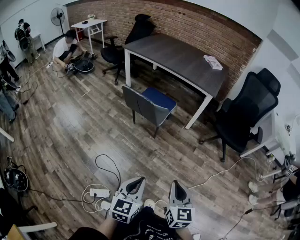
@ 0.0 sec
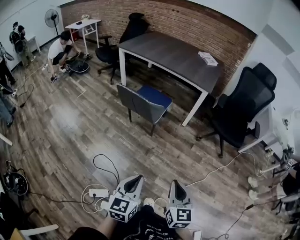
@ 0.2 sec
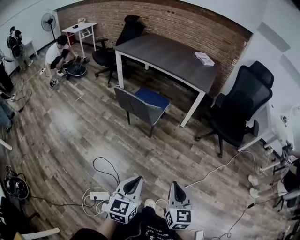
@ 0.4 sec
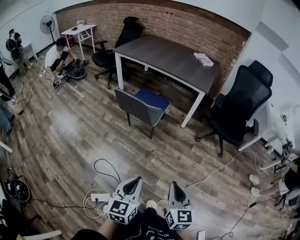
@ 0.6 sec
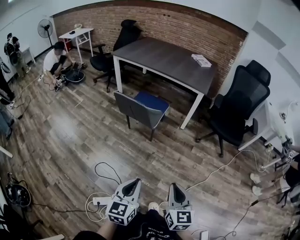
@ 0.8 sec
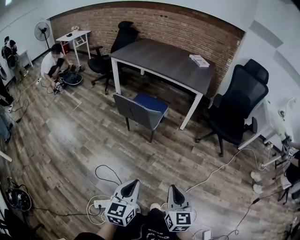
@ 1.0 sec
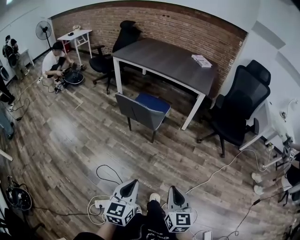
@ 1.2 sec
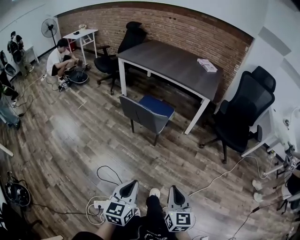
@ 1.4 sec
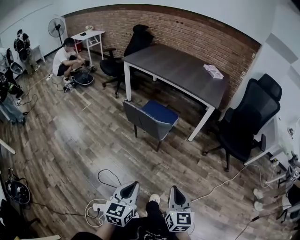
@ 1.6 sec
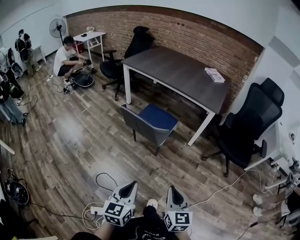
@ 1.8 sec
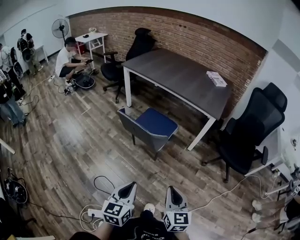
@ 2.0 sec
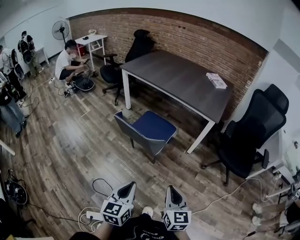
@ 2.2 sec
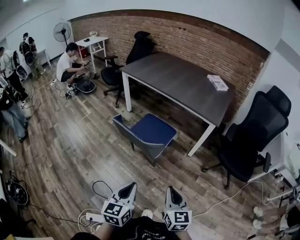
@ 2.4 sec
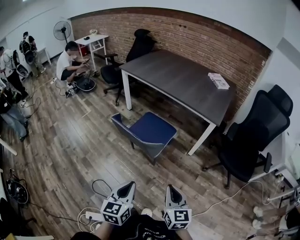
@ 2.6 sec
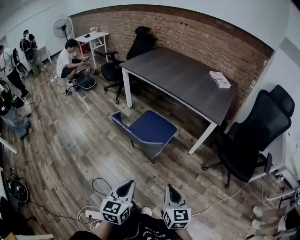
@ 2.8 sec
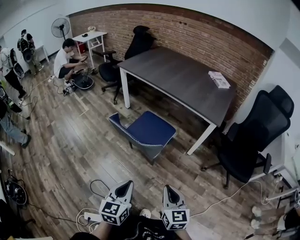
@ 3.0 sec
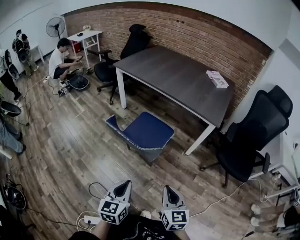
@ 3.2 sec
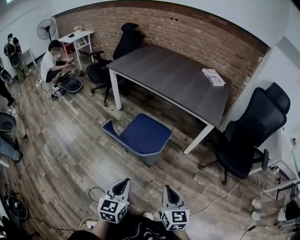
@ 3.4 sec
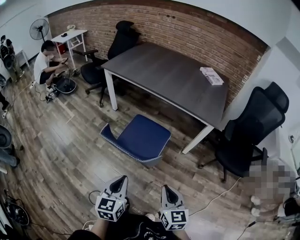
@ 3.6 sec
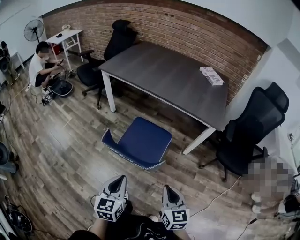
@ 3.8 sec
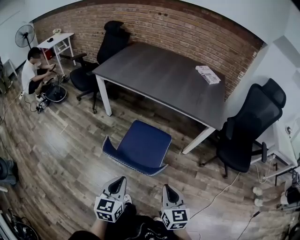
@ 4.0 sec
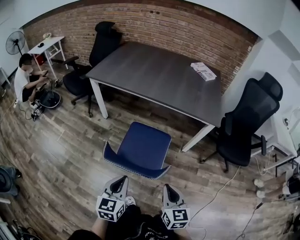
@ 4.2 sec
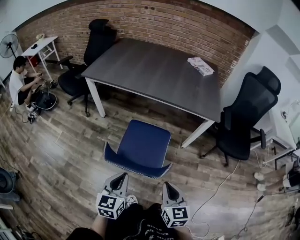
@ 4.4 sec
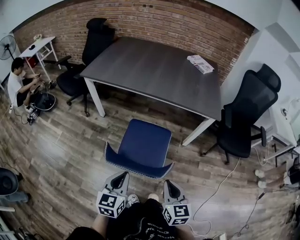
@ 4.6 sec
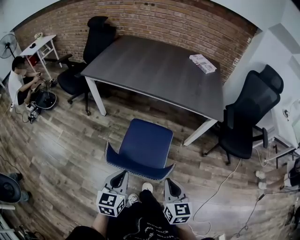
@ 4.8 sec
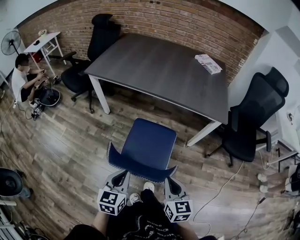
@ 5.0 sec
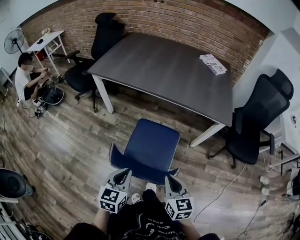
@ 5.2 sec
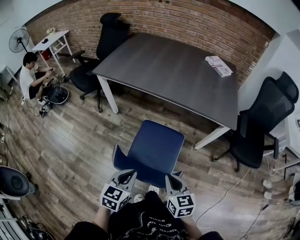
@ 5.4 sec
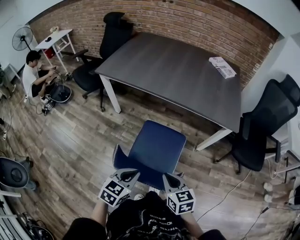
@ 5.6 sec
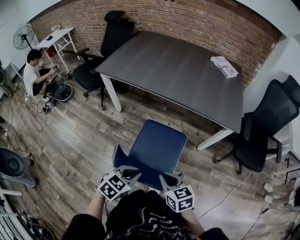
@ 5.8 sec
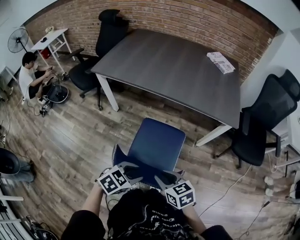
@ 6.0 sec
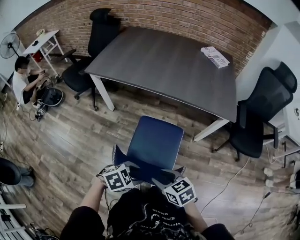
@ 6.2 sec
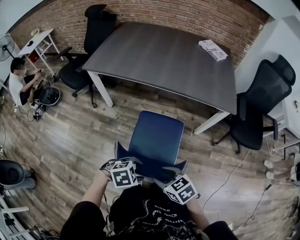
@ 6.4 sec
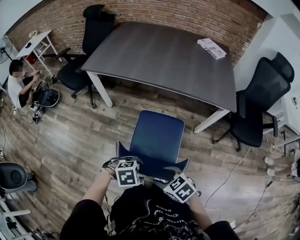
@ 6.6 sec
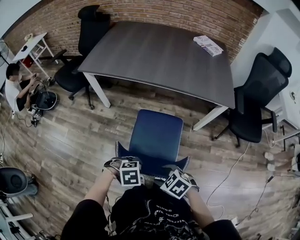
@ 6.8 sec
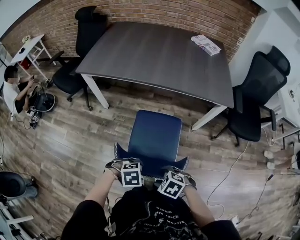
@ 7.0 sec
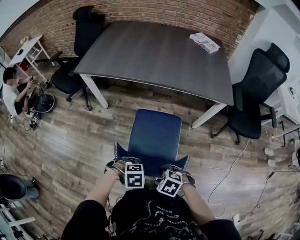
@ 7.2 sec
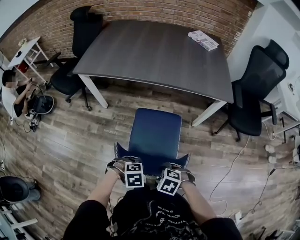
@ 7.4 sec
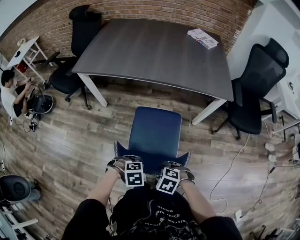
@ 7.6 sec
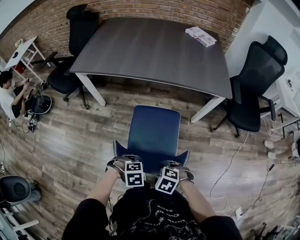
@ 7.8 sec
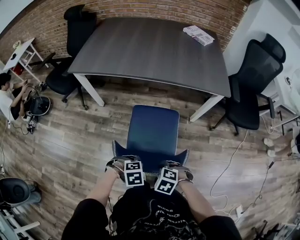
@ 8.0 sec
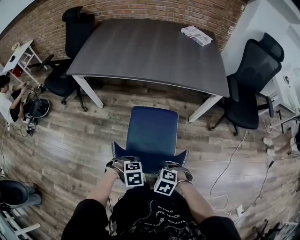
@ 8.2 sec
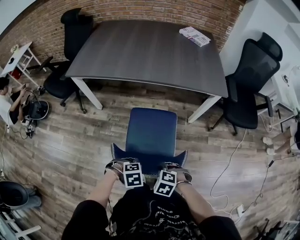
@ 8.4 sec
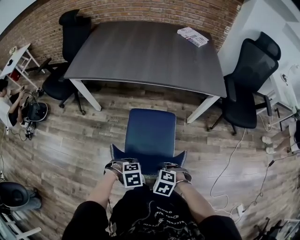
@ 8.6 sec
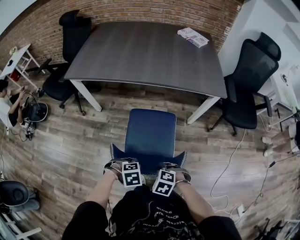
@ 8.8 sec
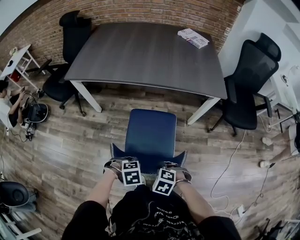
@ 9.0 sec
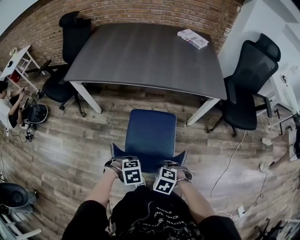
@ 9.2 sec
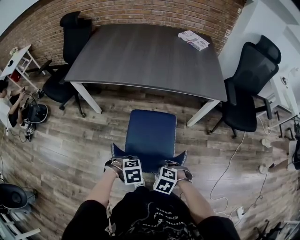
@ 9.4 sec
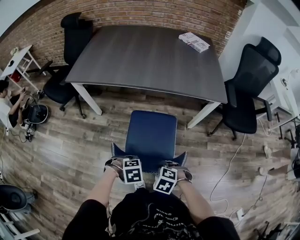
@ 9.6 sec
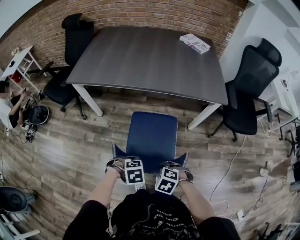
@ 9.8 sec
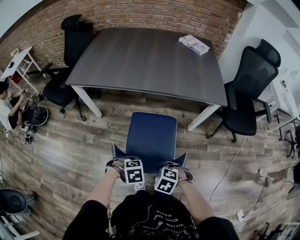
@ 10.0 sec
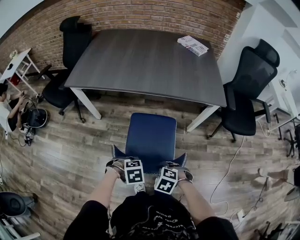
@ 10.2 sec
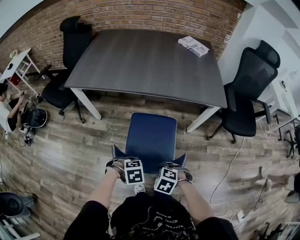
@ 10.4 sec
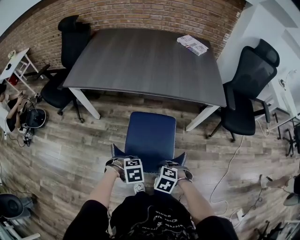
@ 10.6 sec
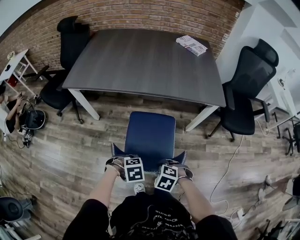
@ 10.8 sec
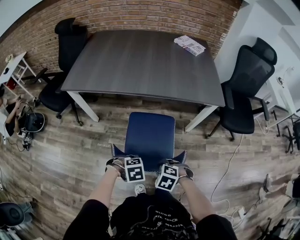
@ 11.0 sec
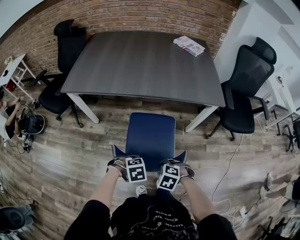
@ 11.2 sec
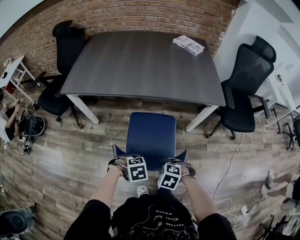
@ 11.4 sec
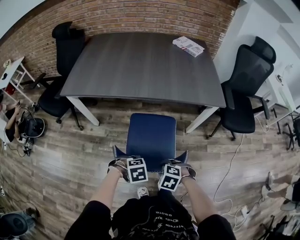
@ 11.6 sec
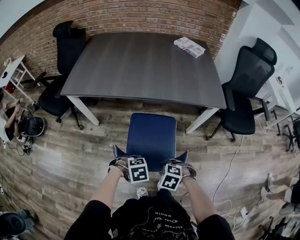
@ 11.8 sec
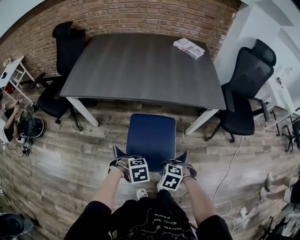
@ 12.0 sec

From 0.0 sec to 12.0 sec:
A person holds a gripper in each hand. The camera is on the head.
From 0.0 sec to 1.6 sec: The left gripper heads forward and to the left, covering about 10 cm, while the right gripper goes some 5 cm forward.
From 1.6 sec to 3.0 sec: Both grippers move forward, some 20 cm.
From 3.0 sec to 4.4 sec: The grippers both shift forward and to the left by approximately 25 cm. The left gripper turns by some 20 degrees. Meanwhile the right gripper turns by roughly 20 degrees.
From 4.4 sec to 6.0 sec: The left gripper heads forward and downward, covering some 10 cm, turns by some 50 degrees, and opens its fingers. Meanwhile the right gripper heads forward and to the left, covering approximately 15 cm, turns by about 30 degrees, and opens up.
From 6.0 sec to 7.6 sec: Both grippers travel together downward, some 10 cm. The right gripper tips its fingers downward by some 40 degrees, and opens its fingers. The left gripper turns by about 50 degrees.
From 7.6 sec to 9.0 sec: The right gripper closes its fingers.
From 9.0 sec to 10.4 sec: The grippers make only small movements.
From 10.4 sec to 12.0 sec: There are only small adjustments of the grippers.

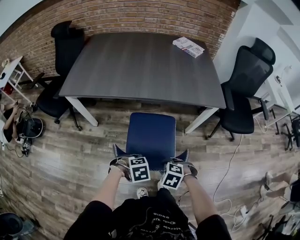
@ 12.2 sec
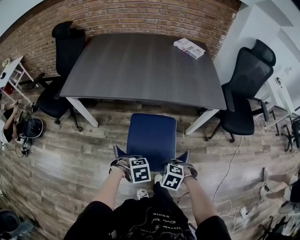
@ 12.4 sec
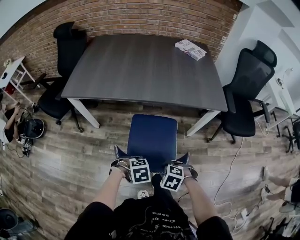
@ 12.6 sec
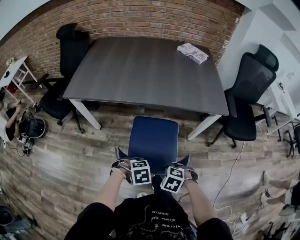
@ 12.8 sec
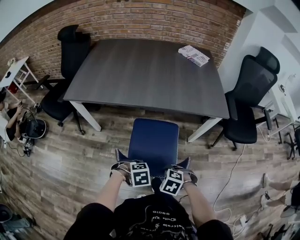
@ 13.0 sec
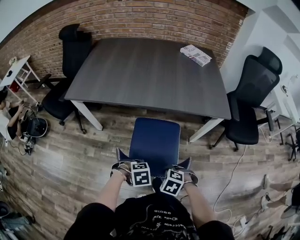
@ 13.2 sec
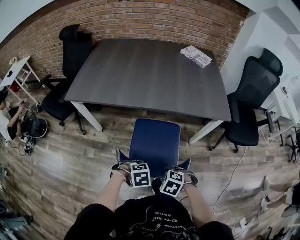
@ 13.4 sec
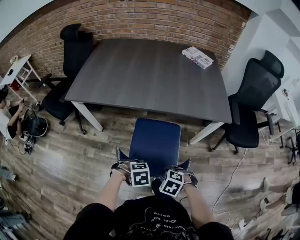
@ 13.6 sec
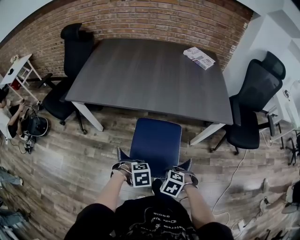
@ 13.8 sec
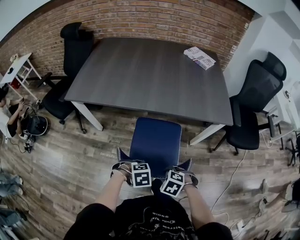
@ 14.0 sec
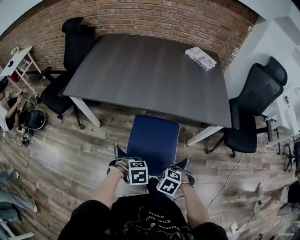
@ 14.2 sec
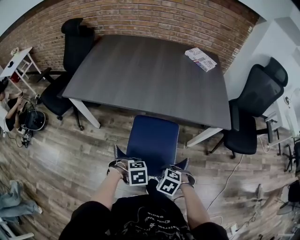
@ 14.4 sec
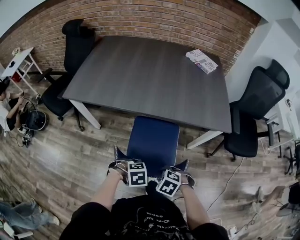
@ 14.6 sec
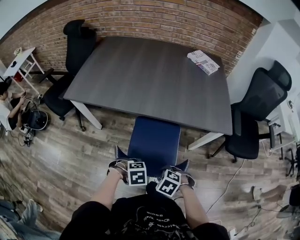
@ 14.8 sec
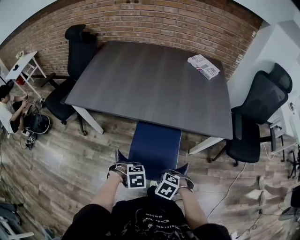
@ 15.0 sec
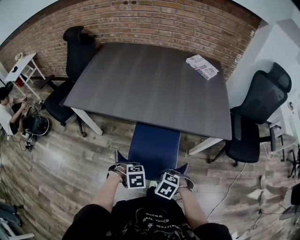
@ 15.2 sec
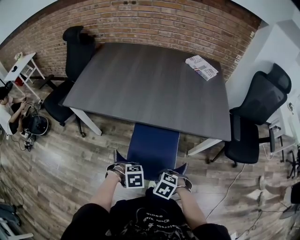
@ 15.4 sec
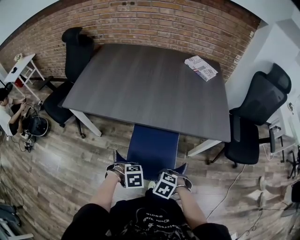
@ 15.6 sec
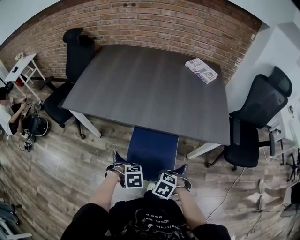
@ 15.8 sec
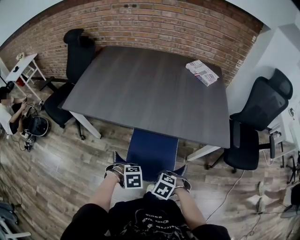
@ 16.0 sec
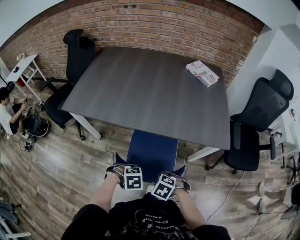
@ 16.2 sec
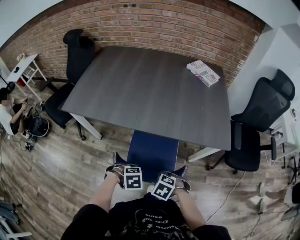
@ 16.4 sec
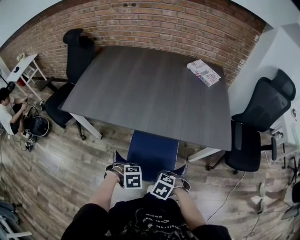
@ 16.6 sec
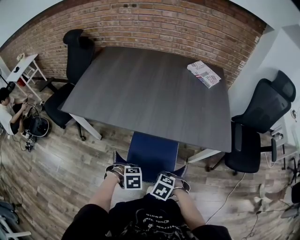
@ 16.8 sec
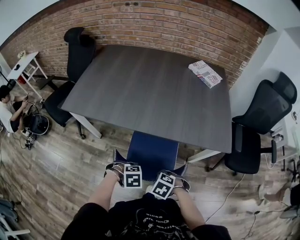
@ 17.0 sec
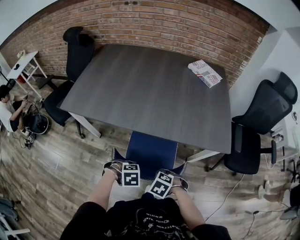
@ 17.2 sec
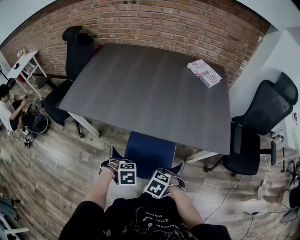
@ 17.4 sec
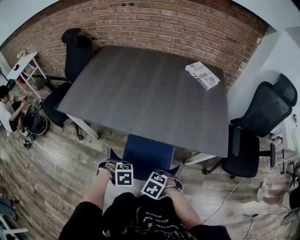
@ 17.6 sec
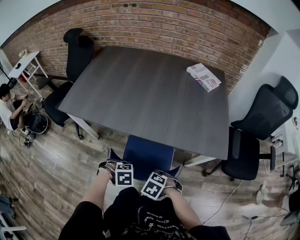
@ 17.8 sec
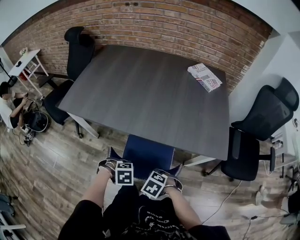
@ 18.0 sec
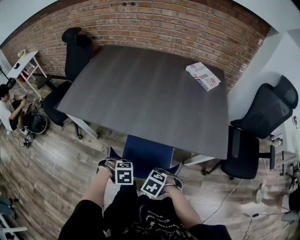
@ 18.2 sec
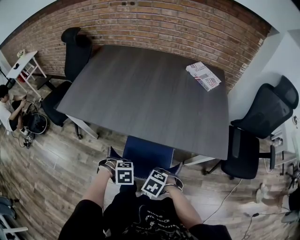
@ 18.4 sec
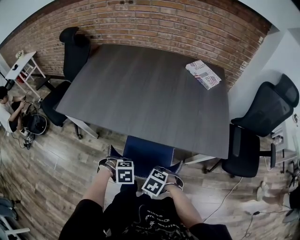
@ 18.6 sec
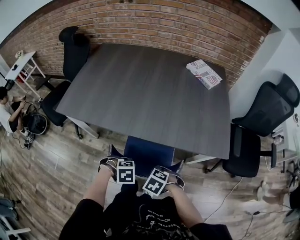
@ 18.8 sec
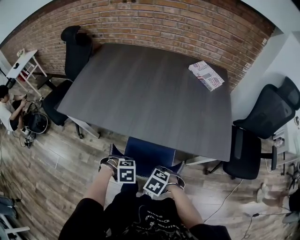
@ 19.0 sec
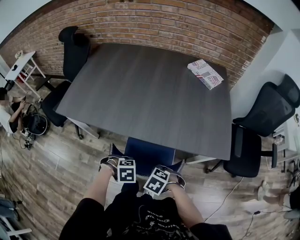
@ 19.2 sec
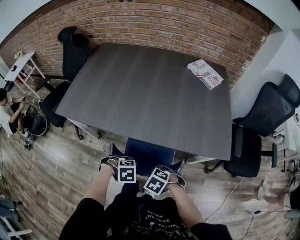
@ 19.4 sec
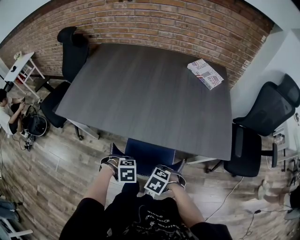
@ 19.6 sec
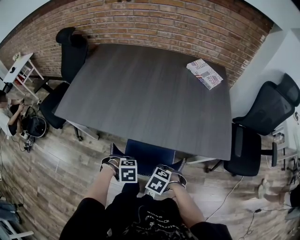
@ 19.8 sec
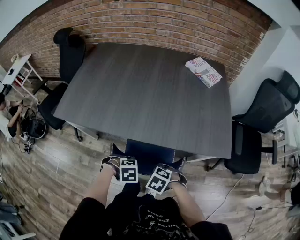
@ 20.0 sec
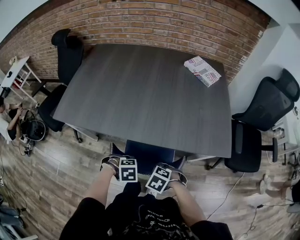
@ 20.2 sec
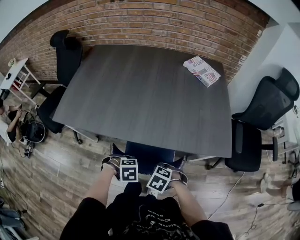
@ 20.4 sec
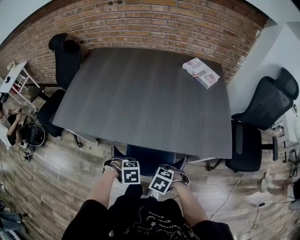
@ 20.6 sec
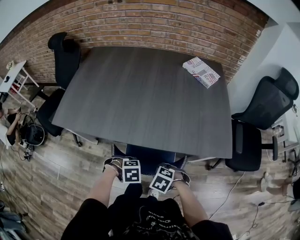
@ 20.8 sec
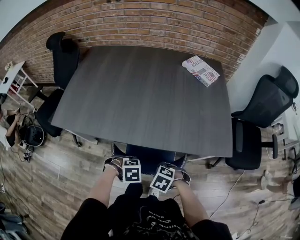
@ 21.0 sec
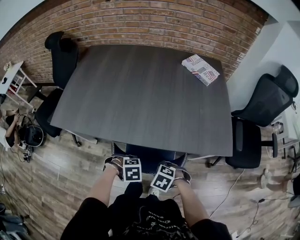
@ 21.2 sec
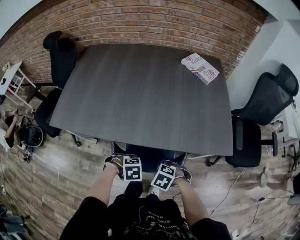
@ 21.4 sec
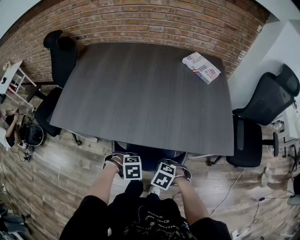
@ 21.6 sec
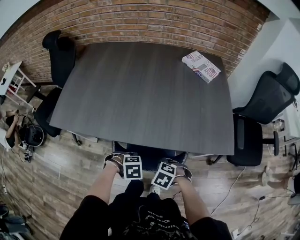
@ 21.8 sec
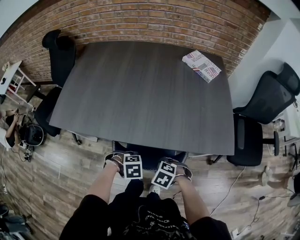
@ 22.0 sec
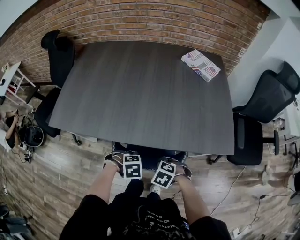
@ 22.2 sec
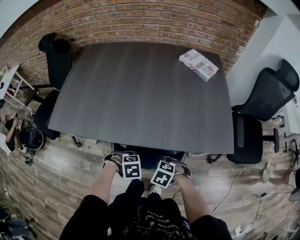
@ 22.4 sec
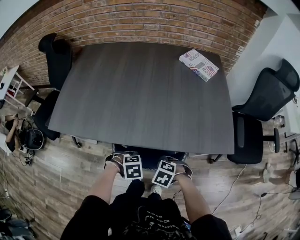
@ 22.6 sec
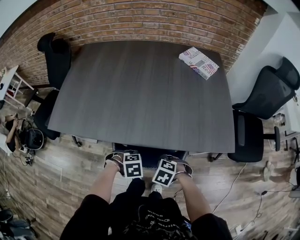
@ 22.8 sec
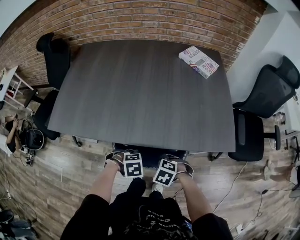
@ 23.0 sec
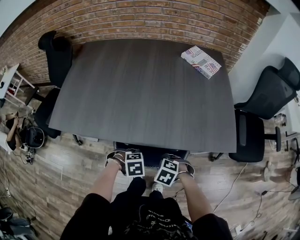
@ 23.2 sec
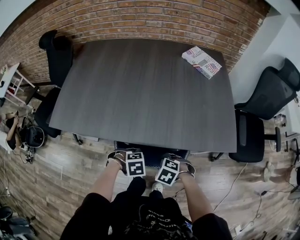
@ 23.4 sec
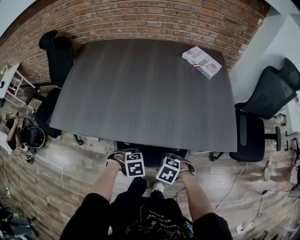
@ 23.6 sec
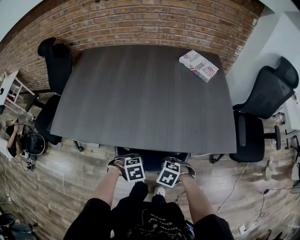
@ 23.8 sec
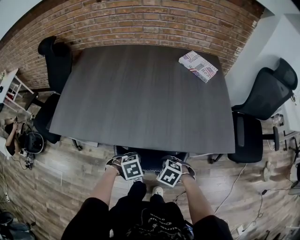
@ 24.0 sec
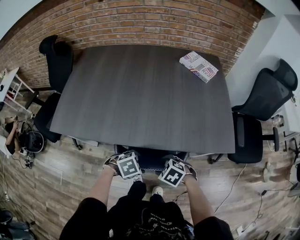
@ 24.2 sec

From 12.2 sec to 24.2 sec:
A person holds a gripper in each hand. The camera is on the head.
From 12.2 sec to 13.8 sec: There are only small adjustments of the grippers.
From 13.8 sec to 15.2 sec: The left gripper changes place by some 5 cm. Meanwhile the right gripper ends up some 5 cm from where it was.
From 15.2 sec to 16.6 sec: The left gripper shifts by approximately 5 cm; the right gripper shifts by roughly 5 cm.
From 16.6 sec to 18.2 sec: The grippers stay close to where they were, moving slightly.
From 18.2 sec to 19.8 sec: There are only small adjustments of the grippers.
From 19.8 sec to 21.2 sec: The grippers stay close to where they were, moving slightly.
From 21.2 sec to 22.6 sec: There are only small adjustments of the grippers.
From 22.6 sec to 24.2 sec: The left gripper opens up; the right gripper opens up.
